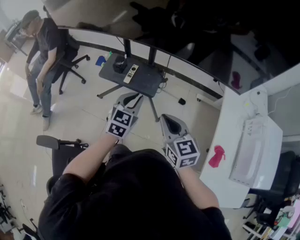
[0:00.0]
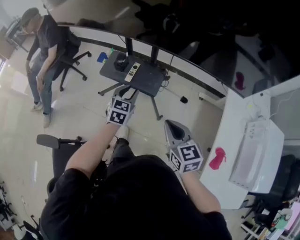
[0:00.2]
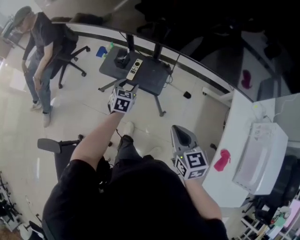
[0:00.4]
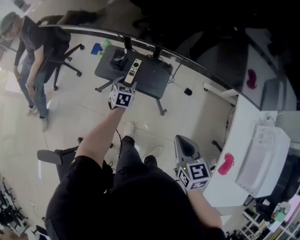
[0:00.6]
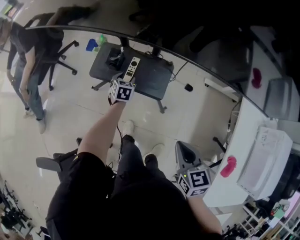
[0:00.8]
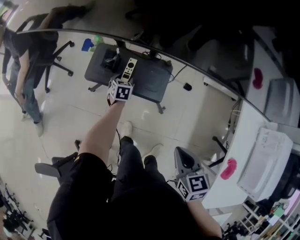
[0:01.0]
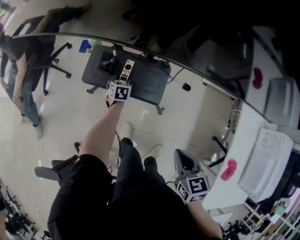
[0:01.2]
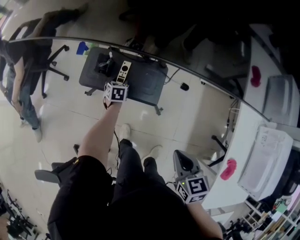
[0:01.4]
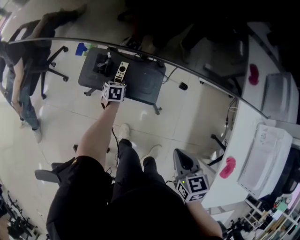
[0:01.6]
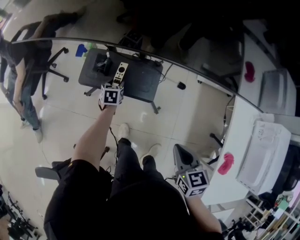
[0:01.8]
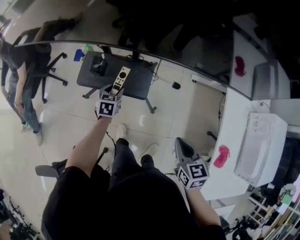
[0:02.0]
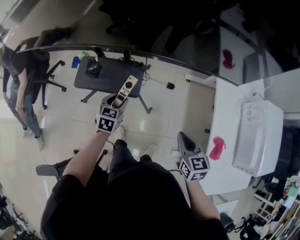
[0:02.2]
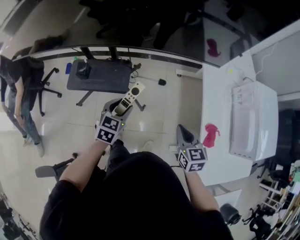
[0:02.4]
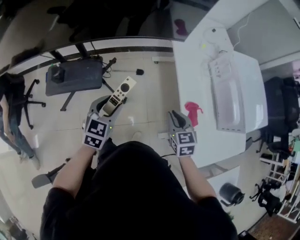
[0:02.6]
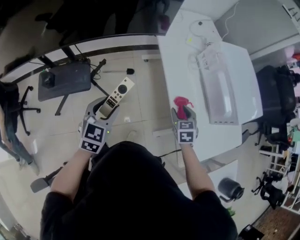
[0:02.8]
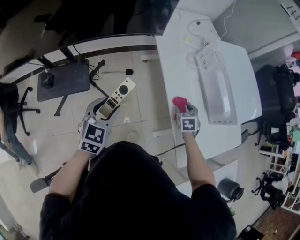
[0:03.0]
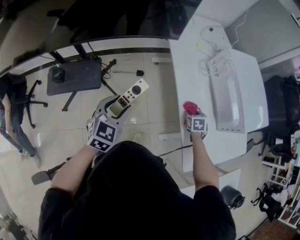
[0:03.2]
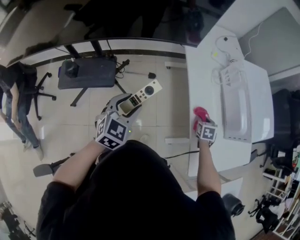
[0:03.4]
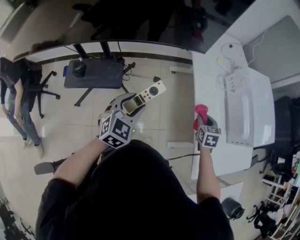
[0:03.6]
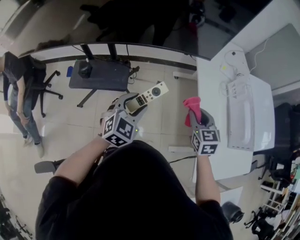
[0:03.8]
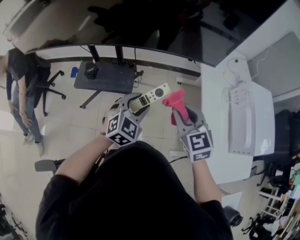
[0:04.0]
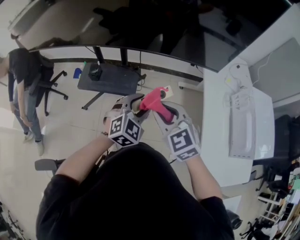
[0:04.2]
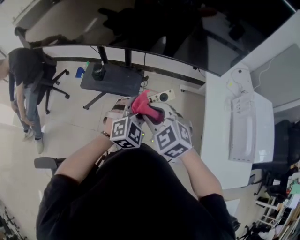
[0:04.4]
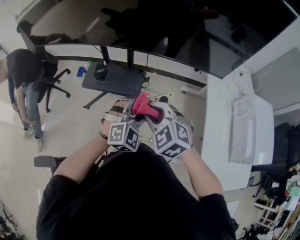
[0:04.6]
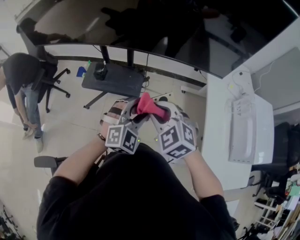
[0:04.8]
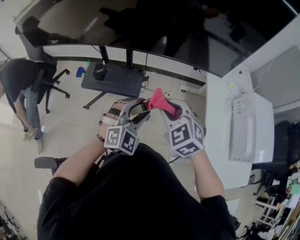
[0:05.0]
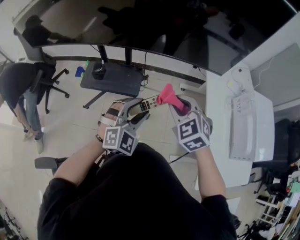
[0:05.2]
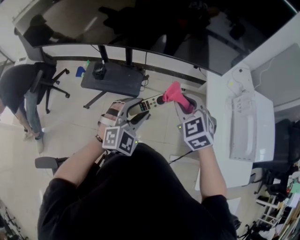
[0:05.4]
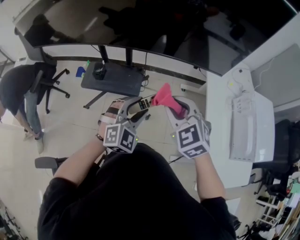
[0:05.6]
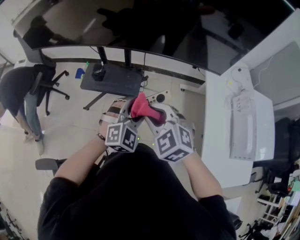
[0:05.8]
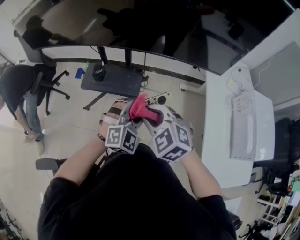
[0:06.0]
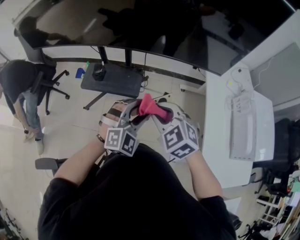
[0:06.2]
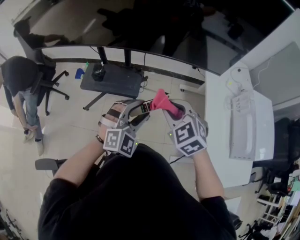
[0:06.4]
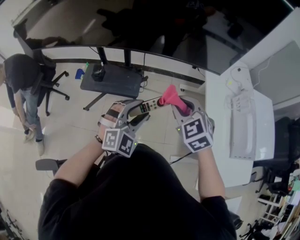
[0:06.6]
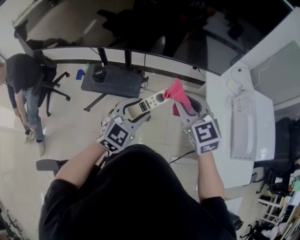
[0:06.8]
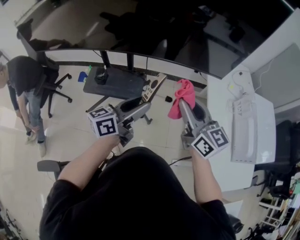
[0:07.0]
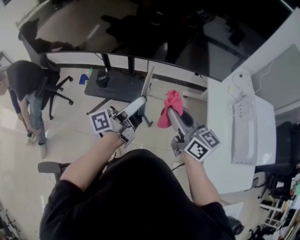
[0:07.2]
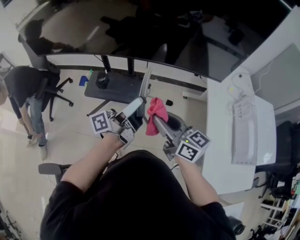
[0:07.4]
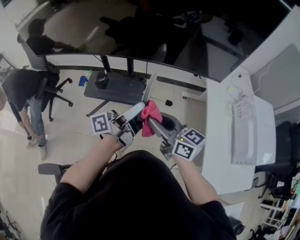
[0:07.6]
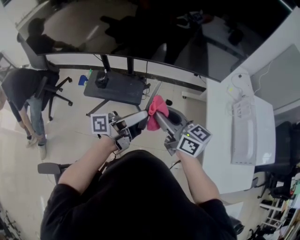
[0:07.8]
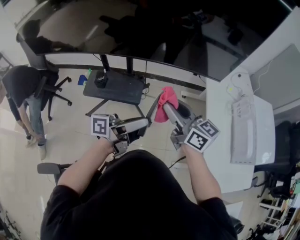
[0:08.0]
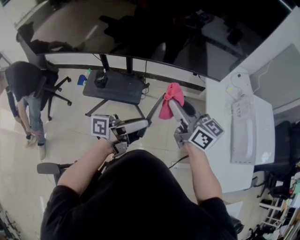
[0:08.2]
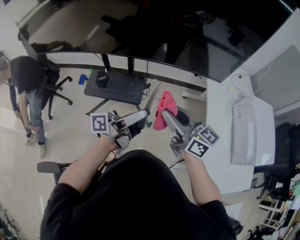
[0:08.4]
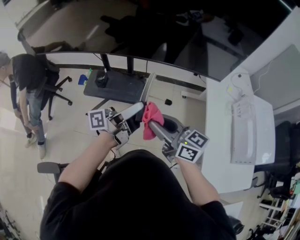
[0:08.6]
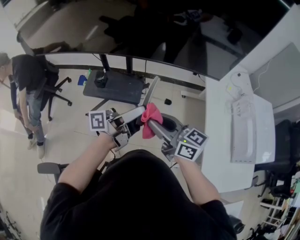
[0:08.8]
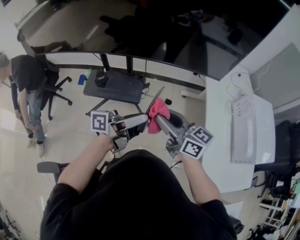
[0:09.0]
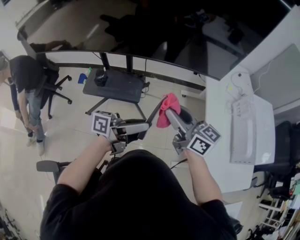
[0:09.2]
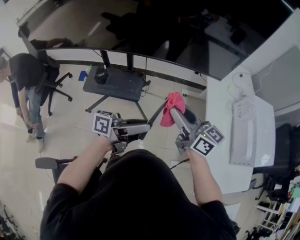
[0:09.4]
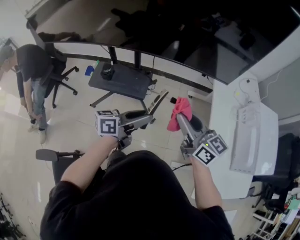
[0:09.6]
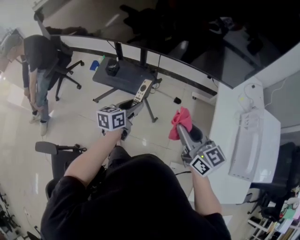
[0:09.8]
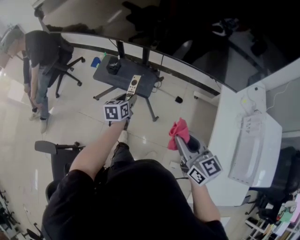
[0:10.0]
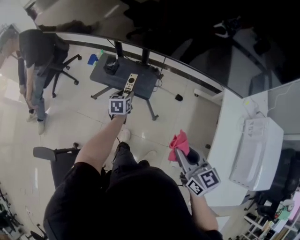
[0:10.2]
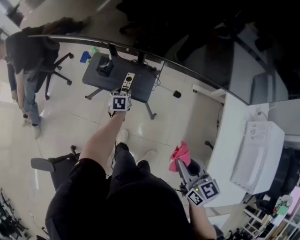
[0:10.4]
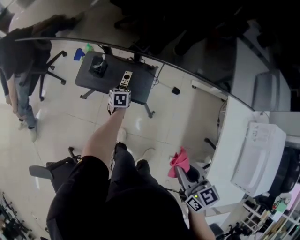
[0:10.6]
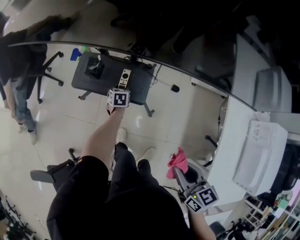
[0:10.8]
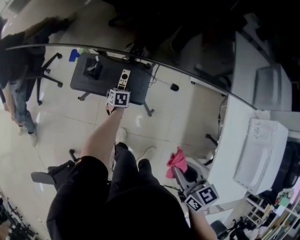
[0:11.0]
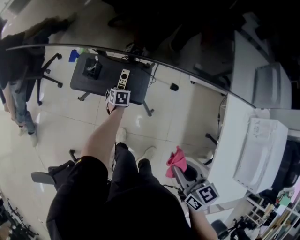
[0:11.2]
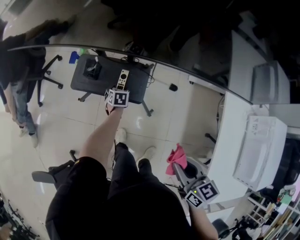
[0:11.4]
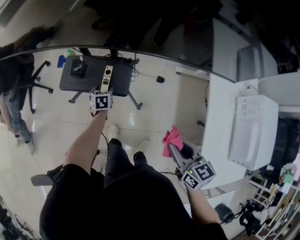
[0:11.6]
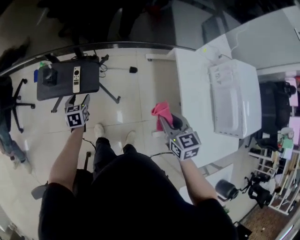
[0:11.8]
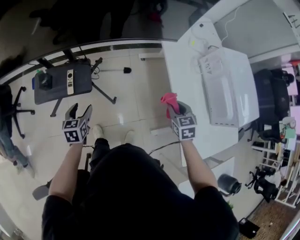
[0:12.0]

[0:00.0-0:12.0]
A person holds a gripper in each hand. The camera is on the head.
0:00.0 to 0:01.6: The right gripper travels downward by approximately 10 cm, and turns by some 30 degrees. The left gripper shifts about 40 cm downward and forward, angles its fingers downward, by roughly 30 degrees, and opens up.
0:01.6 to 0:03.0: The two grippers travel together, approximately 40 cm. The right gripper rotates some 40 degrees, and opens up; the left gripper swivels approximately 60 degrees.
0:03.0 to 0:04.4: The left gripper changes place by approximately 10 cm, and swivels roughly 30 degrees, while the right gripper shifts by approximately 50 cm, swivels some 70 degrees, and closes its fingers.
0:04.4 to 0:06.0: The right gripper reaches about 10 cm to the right, then returns.
0:06.0 to 0:07.6: The right gripper goes to the right and returns, about 10 cm each way, and tilts its fingers some 40 degrees upward. Meanwhile the left gripper goes approximately 10 cm upward, and rolls counterclockwise, seen from behind, by about 110 degrees.
0:07.6 to 0:09.0: The left gripper ends up about 5 cm from where it was.
0:09.0 to 0:10.4: The right gripper is displaced downward by roughly 10 cm, and turns by some 30 degrees. The left gripper is displaced downward by about 40 cm, and tilts its fingers about 70 degrees downward.
0:10.4 to 0:12.0: The right gripper moves about 25 cm, and changes its angle by roughly 40 degrees, while the left gripper changes place by roughly 20 cm, and swivels some 20 degrees.

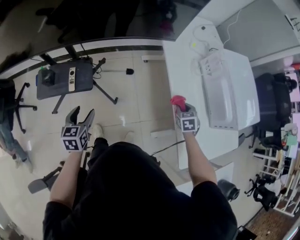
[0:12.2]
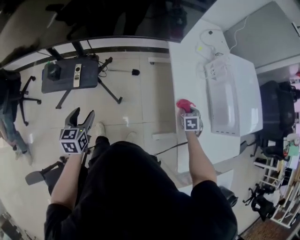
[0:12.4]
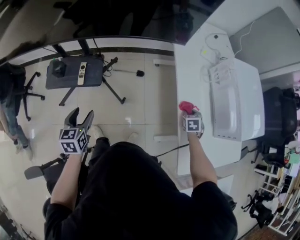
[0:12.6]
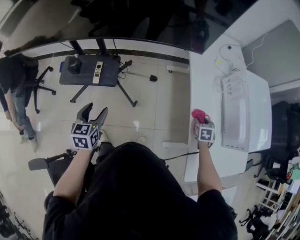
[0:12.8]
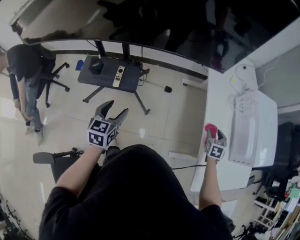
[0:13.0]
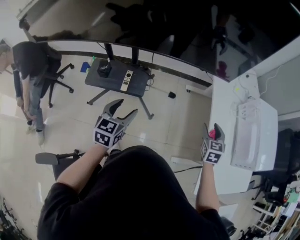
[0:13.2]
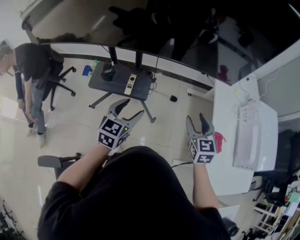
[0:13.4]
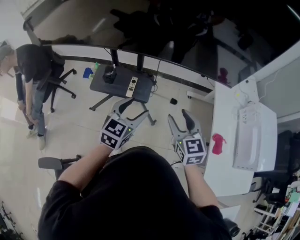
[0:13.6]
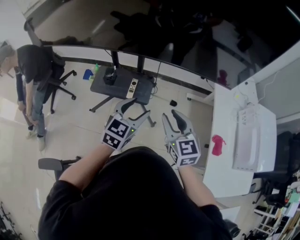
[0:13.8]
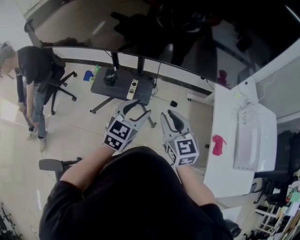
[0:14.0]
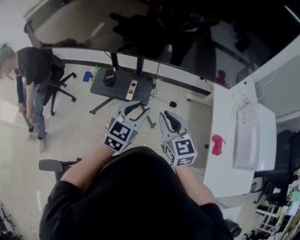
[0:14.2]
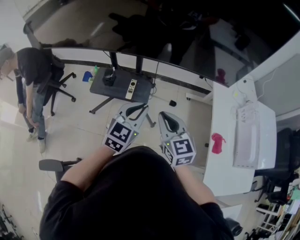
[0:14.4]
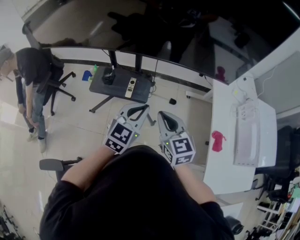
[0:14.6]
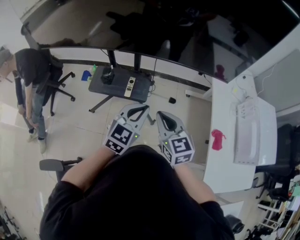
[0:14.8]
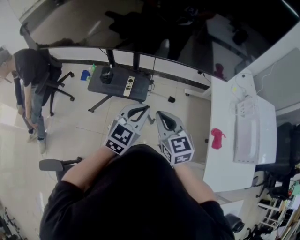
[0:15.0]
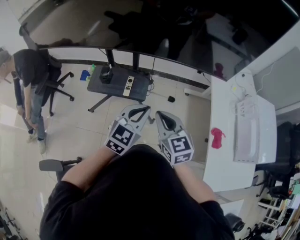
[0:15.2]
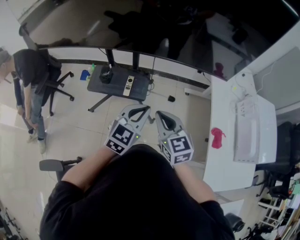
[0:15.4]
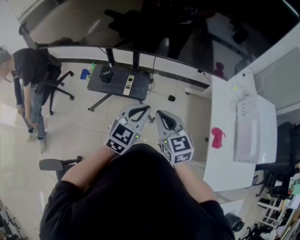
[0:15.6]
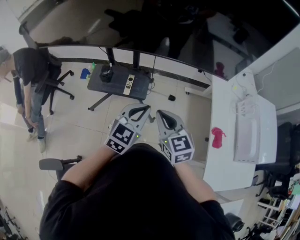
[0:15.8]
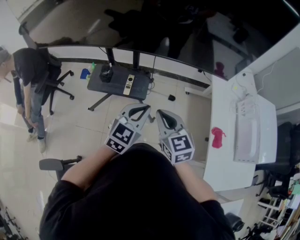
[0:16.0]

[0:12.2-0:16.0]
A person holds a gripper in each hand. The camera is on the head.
0:12.2 to 0:13.4: The left gripper moves upward, roughly 10 cm; the right gripper shifts about 35 cm to the left and upward, swivels some 40 degrees, and opens.
0:13.4 to 0:14.8: The right gripper is displaced to the left by approximately 15 cm, and closes up; the left gripper heads upward, covering approximately 5 cm, and closes.
0:14.8 to 0:16.0: The two grippers keep their place.

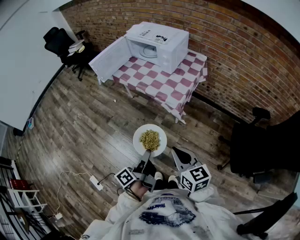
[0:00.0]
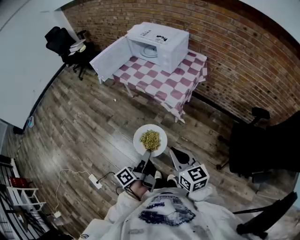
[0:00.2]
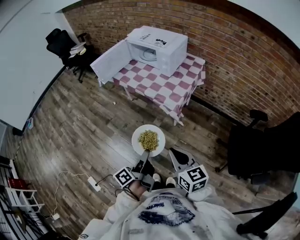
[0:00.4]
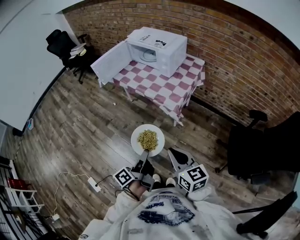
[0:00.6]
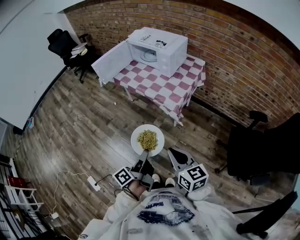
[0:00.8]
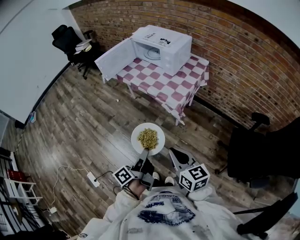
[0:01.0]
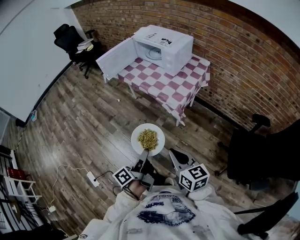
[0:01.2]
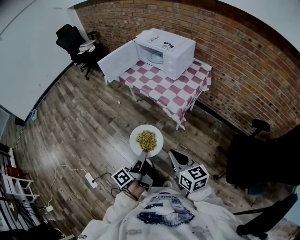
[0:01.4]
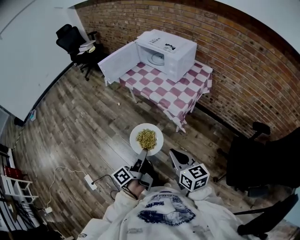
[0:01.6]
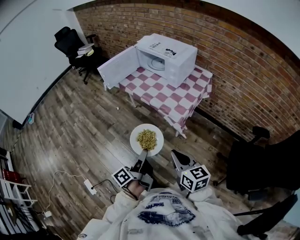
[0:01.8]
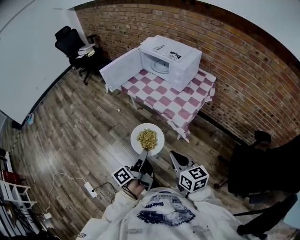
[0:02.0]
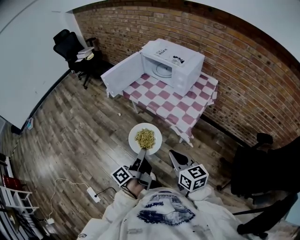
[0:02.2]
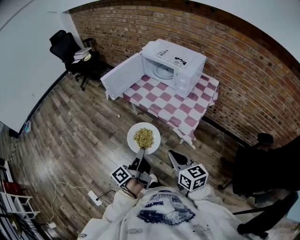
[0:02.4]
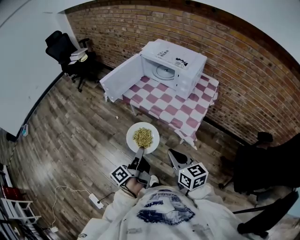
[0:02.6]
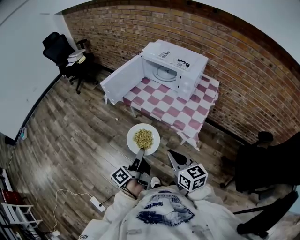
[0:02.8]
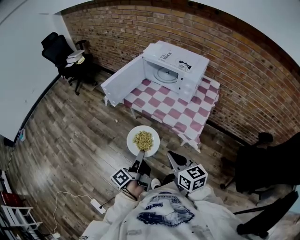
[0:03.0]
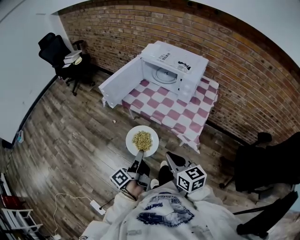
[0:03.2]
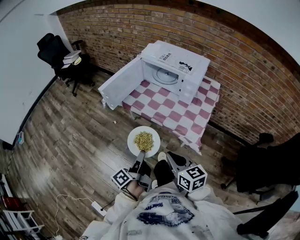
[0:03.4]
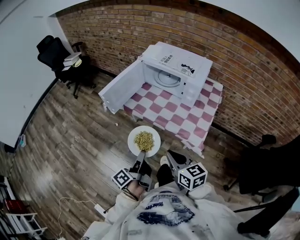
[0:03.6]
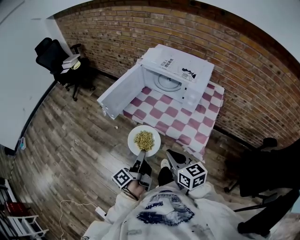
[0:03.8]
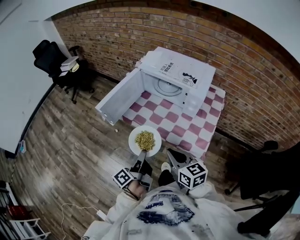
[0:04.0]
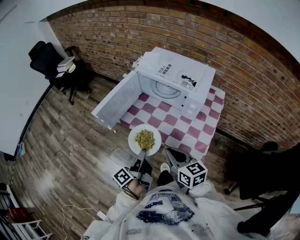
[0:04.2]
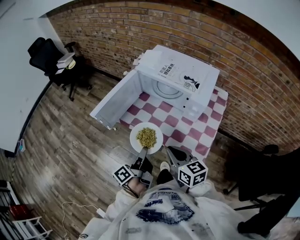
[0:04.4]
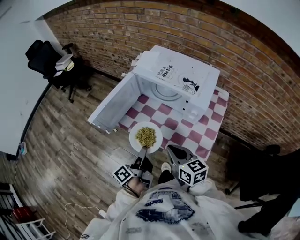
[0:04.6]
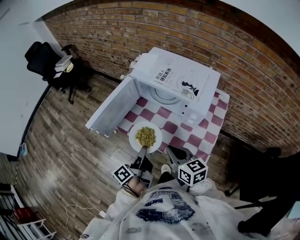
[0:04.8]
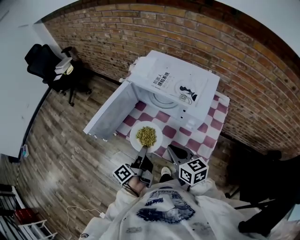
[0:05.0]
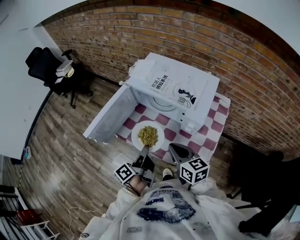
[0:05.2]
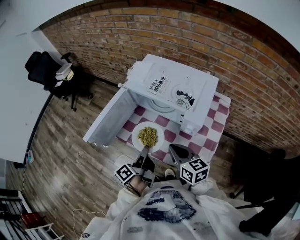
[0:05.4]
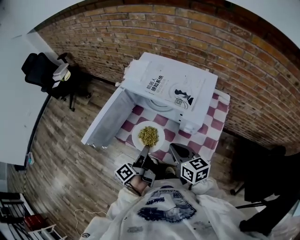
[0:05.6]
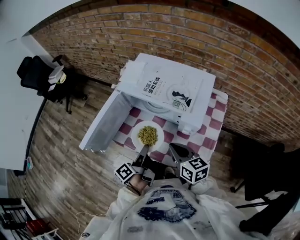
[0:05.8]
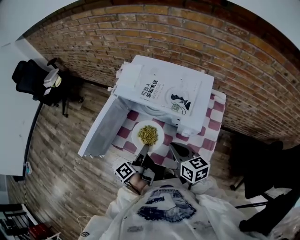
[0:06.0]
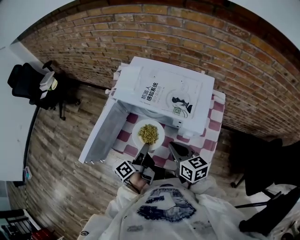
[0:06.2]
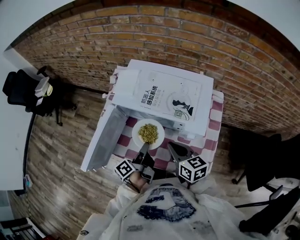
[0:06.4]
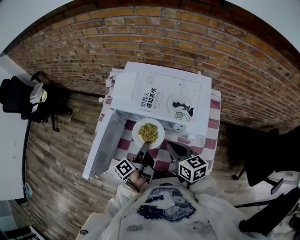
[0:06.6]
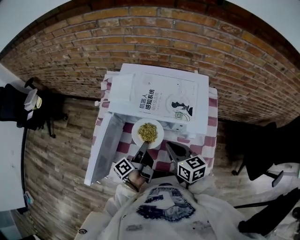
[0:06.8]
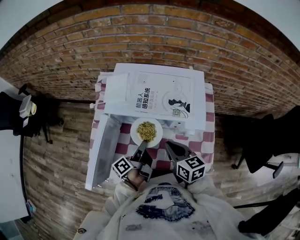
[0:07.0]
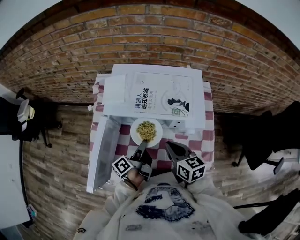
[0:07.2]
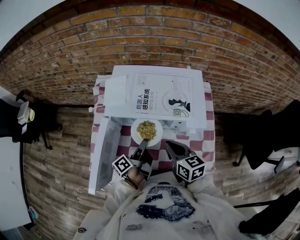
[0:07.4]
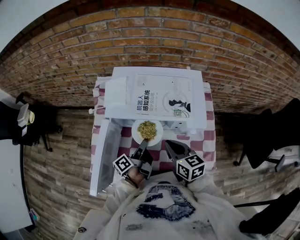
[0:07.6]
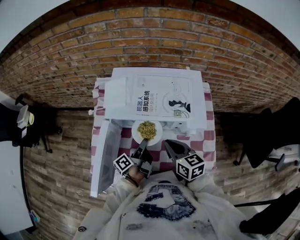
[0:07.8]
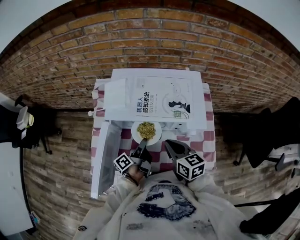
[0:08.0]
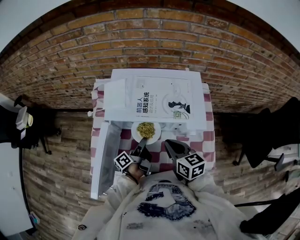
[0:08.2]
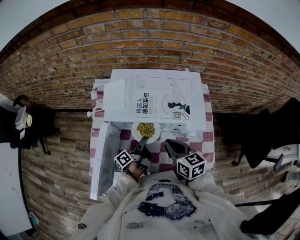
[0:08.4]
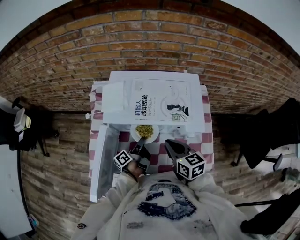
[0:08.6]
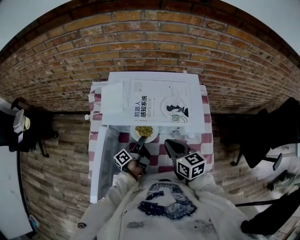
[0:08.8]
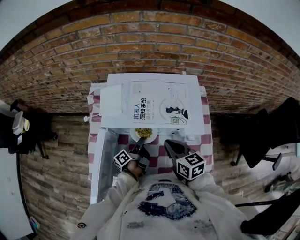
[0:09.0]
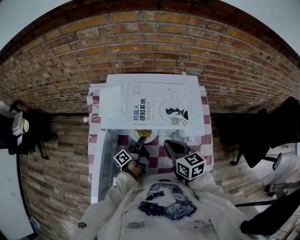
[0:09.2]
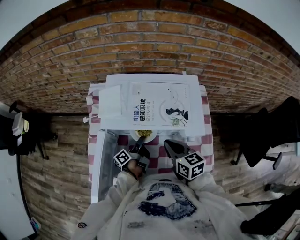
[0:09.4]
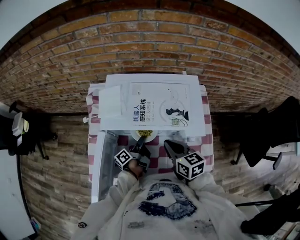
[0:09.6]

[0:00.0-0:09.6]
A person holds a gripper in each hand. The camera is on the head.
0:01.6 to 0:03.2: The right gripper changes place by about 25 cm.
0:03.2 to 0:04.8: The right gripper changes place by some 30 cm.
0:04.8 to 0:06.4: The right gripper ends up roughly 15 cm from where it was.
